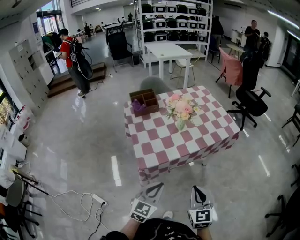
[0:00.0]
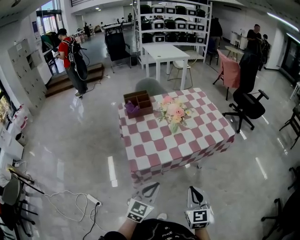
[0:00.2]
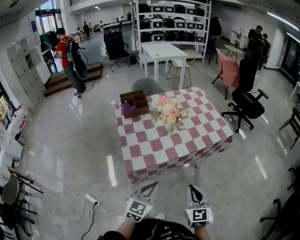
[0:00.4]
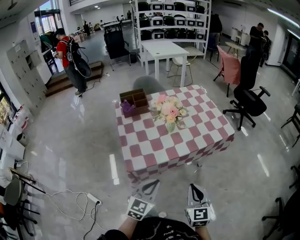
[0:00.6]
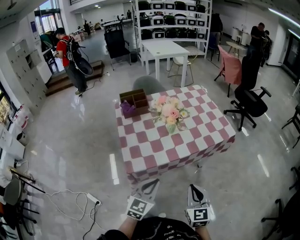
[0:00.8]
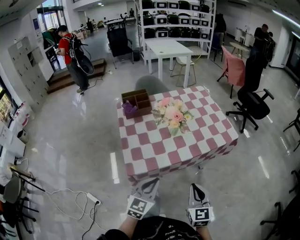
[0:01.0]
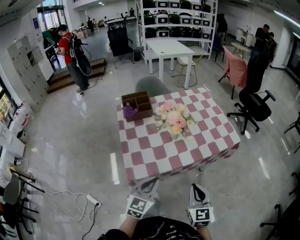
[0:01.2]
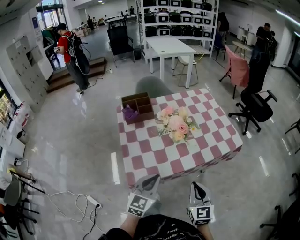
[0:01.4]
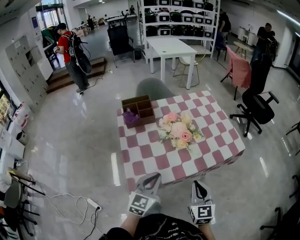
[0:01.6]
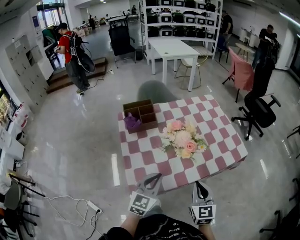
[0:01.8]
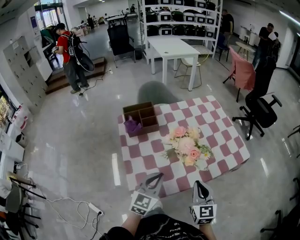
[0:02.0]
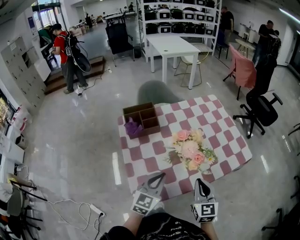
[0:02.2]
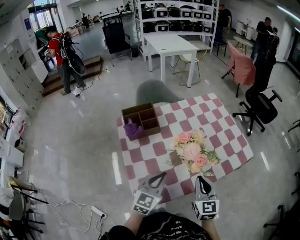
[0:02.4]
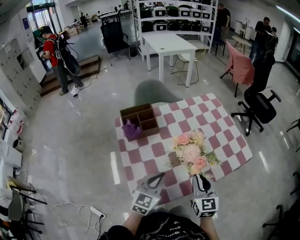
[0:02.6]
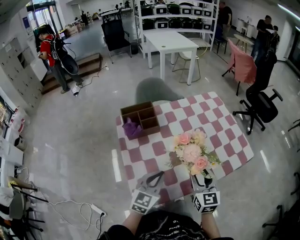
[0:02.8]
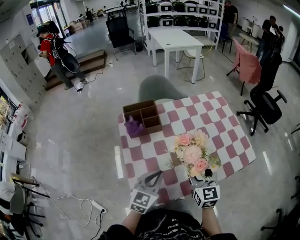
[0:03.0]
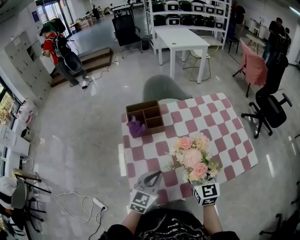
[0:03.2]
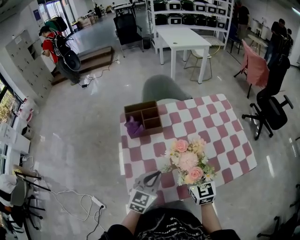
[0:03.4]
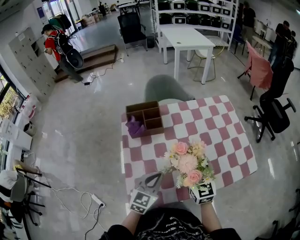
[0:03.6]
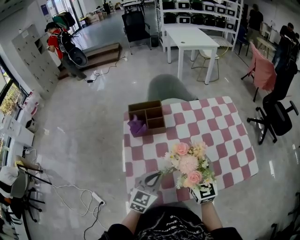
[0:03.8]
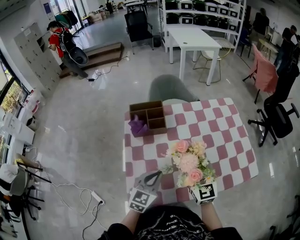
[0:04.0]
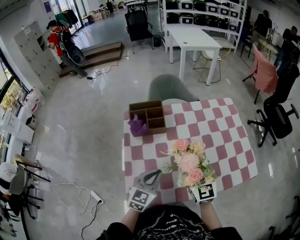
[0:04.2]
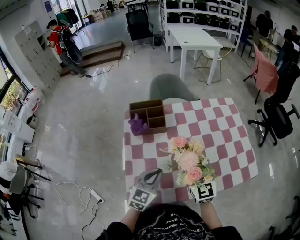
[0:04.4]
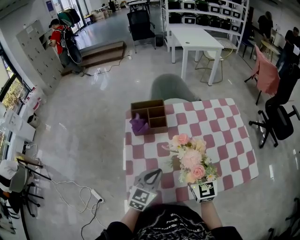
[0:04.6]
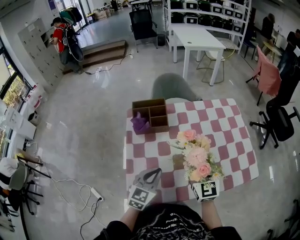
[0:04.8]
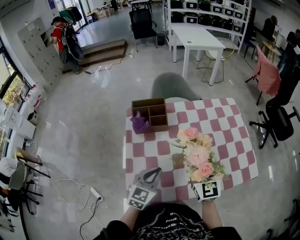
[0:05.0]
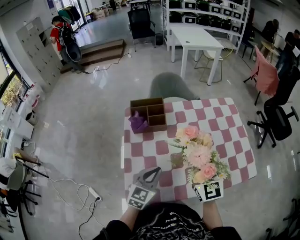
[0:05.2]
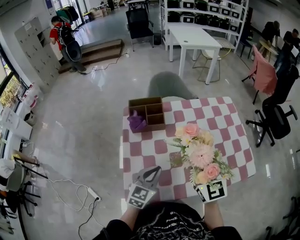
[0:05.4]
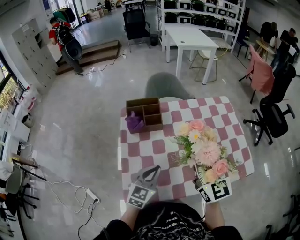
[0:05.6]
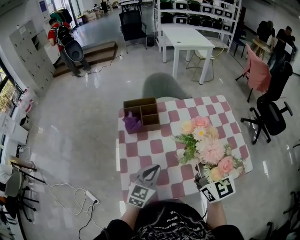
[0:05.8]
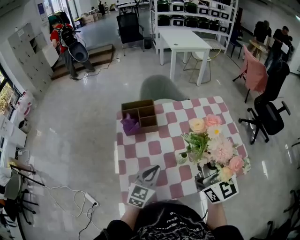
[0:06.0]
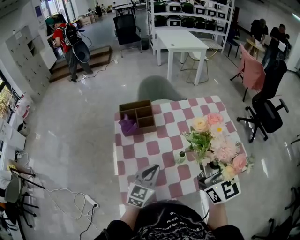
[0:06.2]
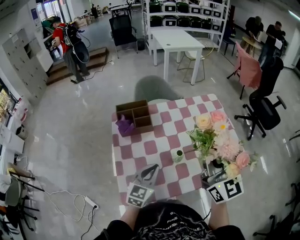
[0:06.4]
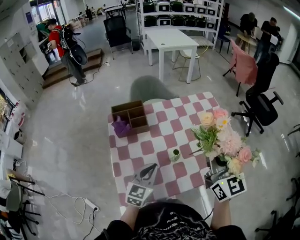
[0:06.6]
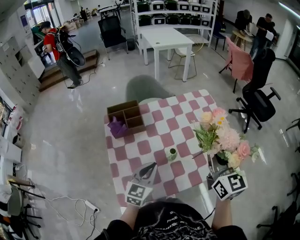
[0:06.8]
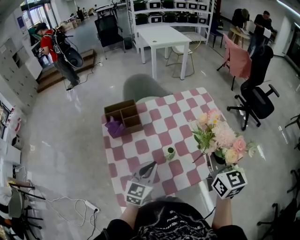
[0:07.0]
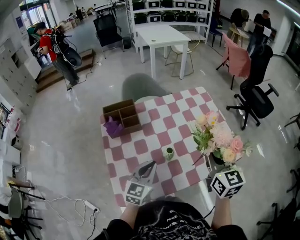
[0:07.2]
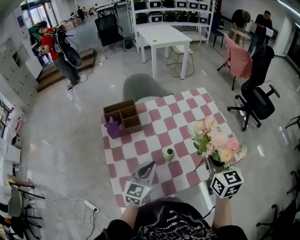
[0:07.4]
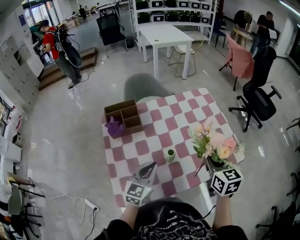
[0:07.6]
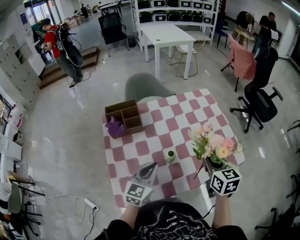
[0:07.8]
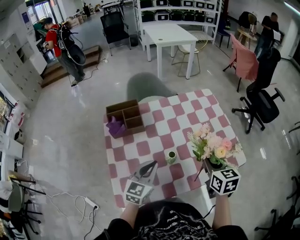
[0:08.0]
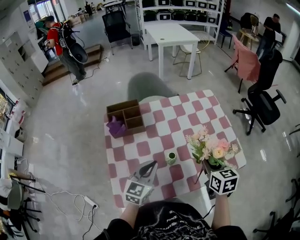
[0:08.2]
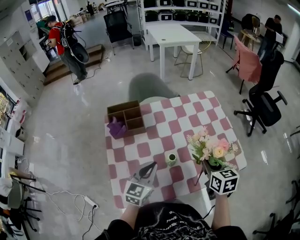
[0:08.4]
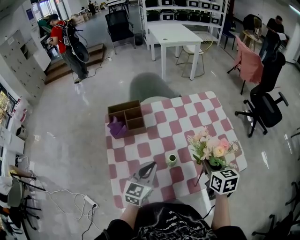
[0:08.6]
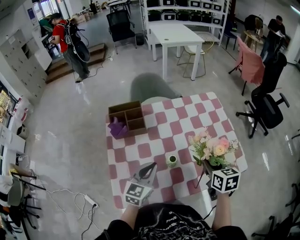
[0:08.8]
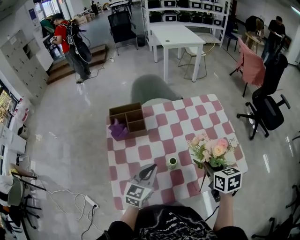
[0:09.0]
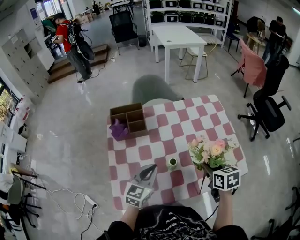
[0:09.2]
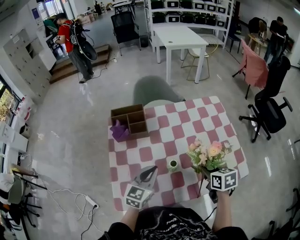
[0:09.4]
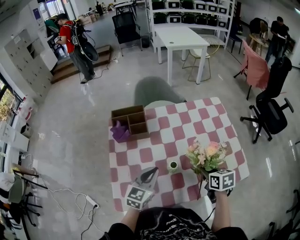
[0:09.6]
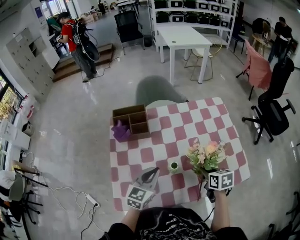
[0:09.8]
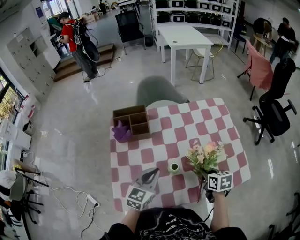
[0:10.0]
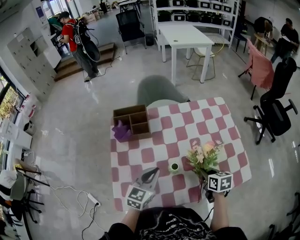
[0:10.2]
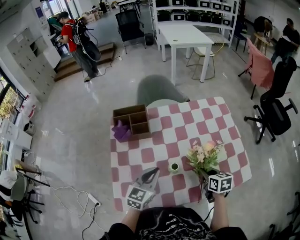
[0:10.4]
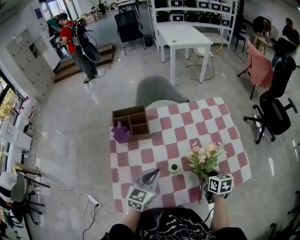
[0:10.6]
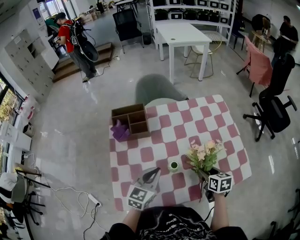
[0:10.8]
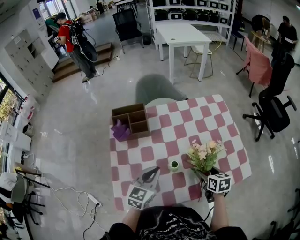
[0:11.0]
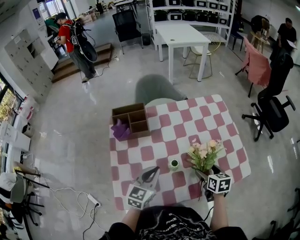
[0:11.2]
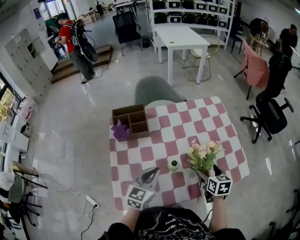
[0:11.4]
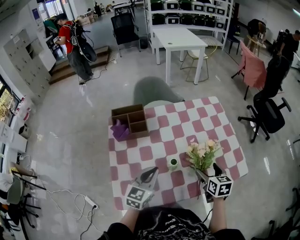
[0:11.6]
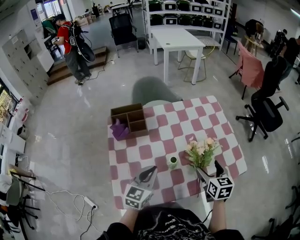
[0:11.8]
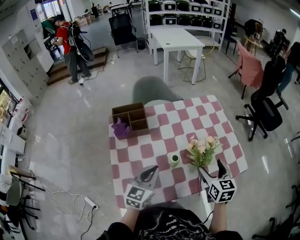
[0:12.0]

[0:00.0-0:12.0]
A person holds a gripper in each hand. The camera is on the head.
0:00.0 to 0:01.6: Both grippers travel together forward, about 20 cm.
0:01.6 to 0:03.0: The right gripper travels forward and to the left by roughly 20 cm, and opens, while the left gripper shifts about 10 cm forward and to the left.
0:03.0 to 0:04.4: The right gripper is displaced forward by approximately 5 cm, turns by about 20 degrees, and closes up.
0:04.4 to 0:06.0: The right gripper moves upward, about 15 cm.
0:06.0 to 0:07.6: The right gripper travels downward and to the right by roughly 20 cm, and points its fingers roughly 40 degrees further downward.
0:07.6 to 0:09.0: The right gripper goes some 5 cm downward, and rotates some 20 degrees.
0:09.0 to 0:10.4: The right gripper moves downward, approximately 10 cm.
0:10.4 to 0:12.0: The right gripper moves upward, roughly 10 cm, changes its angle by about 30 degrees, and opens up.

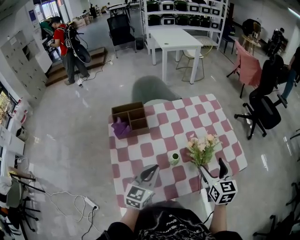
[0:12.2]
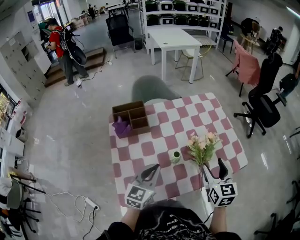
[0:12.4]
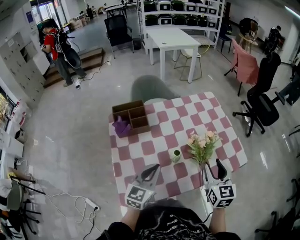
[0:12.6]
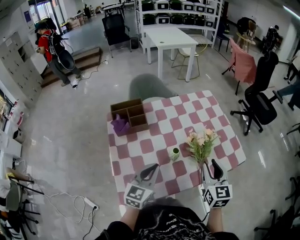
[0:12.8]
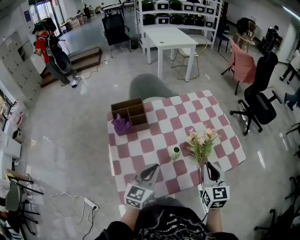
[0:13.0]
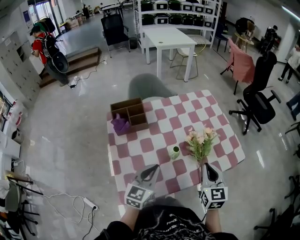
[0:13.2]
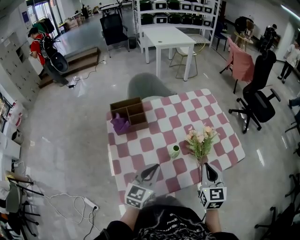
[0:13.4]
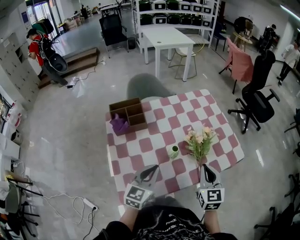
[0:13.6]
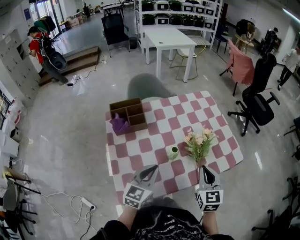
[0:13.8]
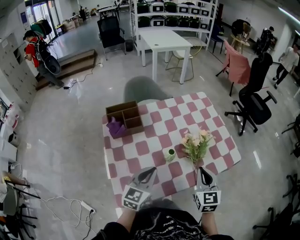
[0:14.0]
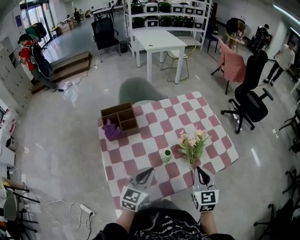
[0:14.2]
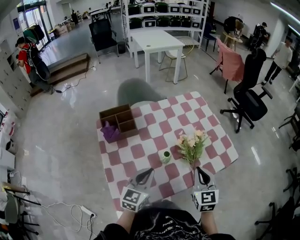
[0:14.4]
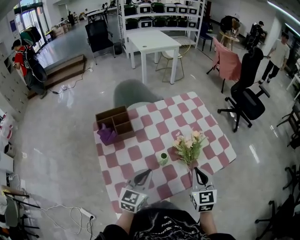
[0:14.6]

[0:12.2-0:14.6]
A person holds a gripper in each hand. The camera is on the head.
0:12.2 to 0:13.4: The right gripper goes some 5 cm backward, and closes.
0:13.4 to 0:14.6: The grippers make only small movements.

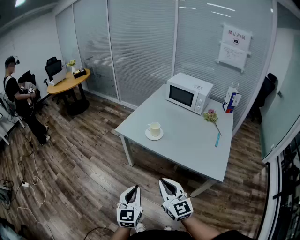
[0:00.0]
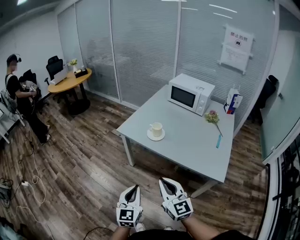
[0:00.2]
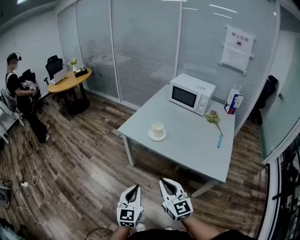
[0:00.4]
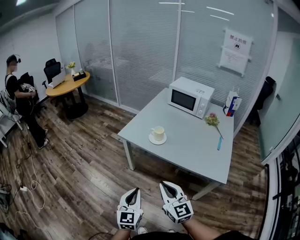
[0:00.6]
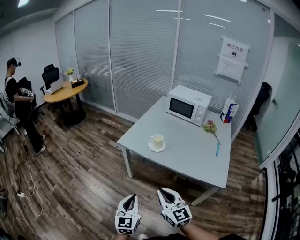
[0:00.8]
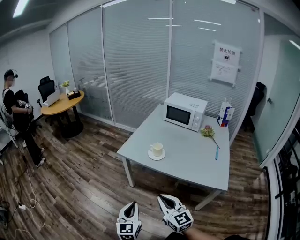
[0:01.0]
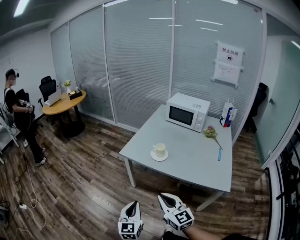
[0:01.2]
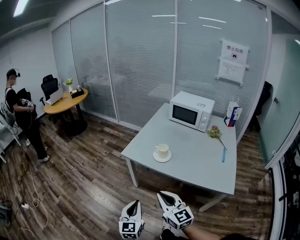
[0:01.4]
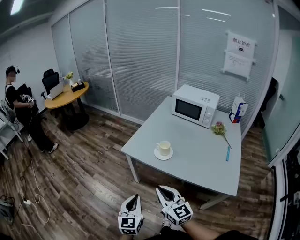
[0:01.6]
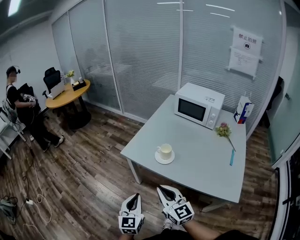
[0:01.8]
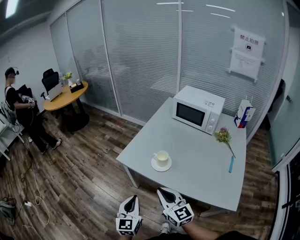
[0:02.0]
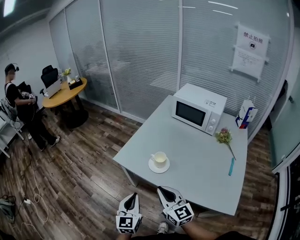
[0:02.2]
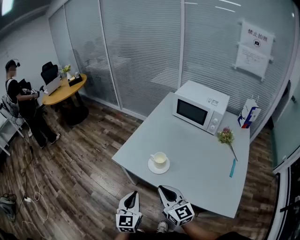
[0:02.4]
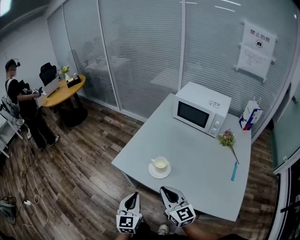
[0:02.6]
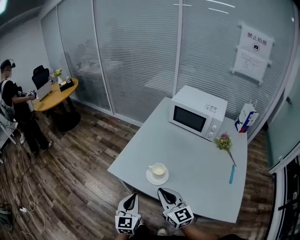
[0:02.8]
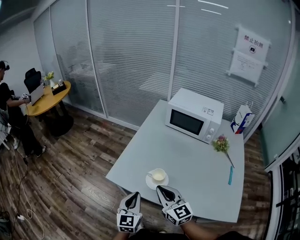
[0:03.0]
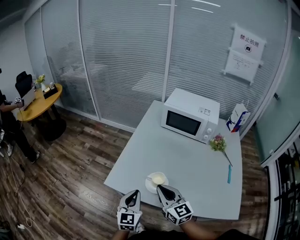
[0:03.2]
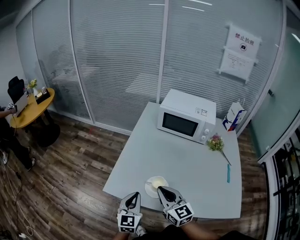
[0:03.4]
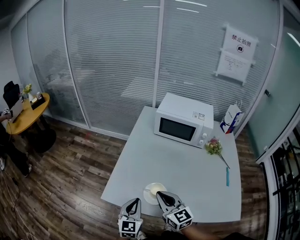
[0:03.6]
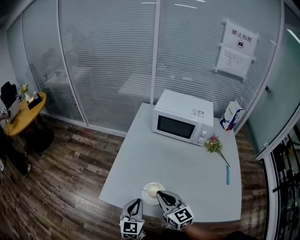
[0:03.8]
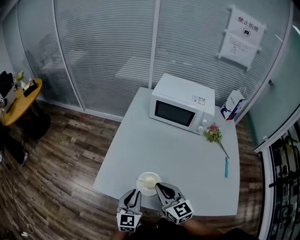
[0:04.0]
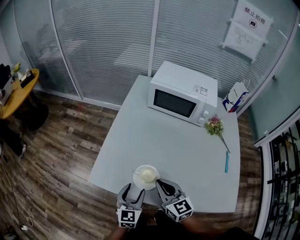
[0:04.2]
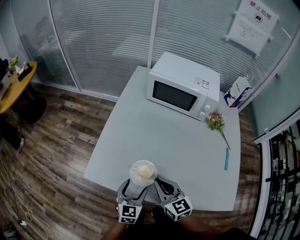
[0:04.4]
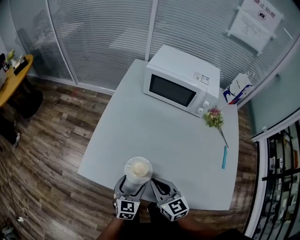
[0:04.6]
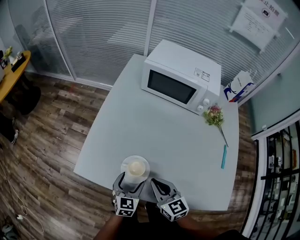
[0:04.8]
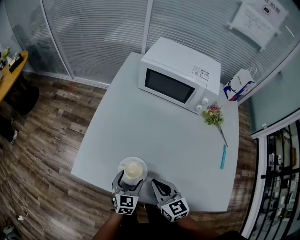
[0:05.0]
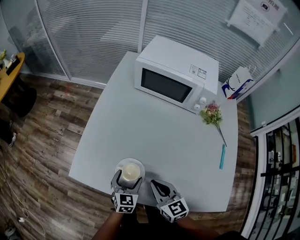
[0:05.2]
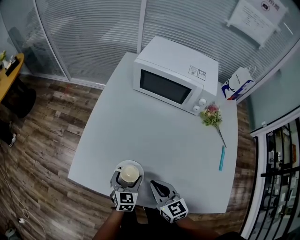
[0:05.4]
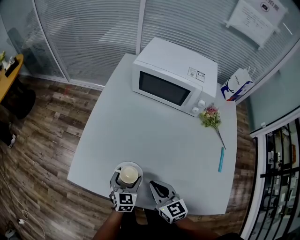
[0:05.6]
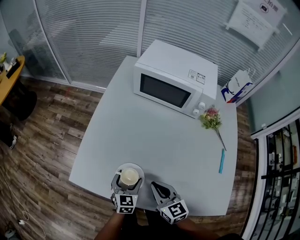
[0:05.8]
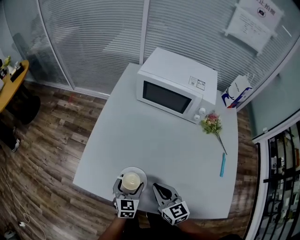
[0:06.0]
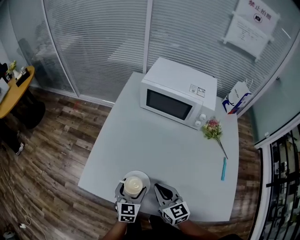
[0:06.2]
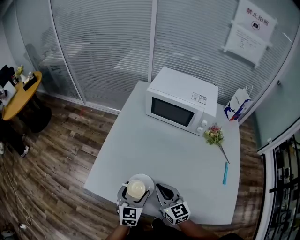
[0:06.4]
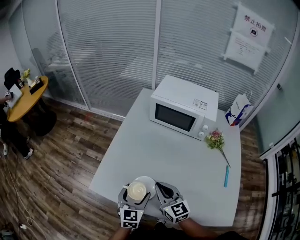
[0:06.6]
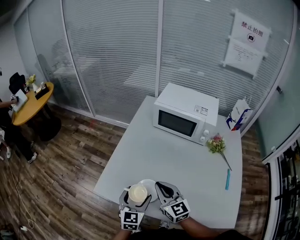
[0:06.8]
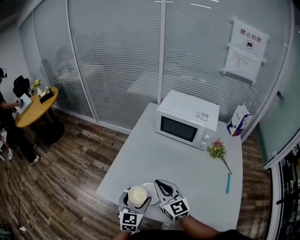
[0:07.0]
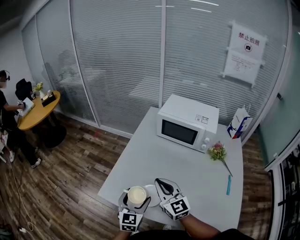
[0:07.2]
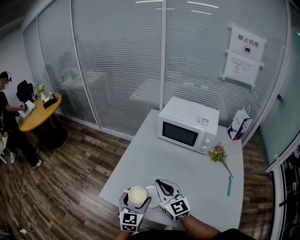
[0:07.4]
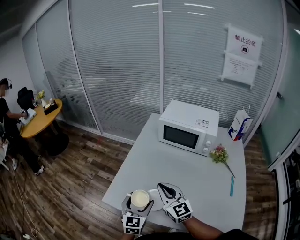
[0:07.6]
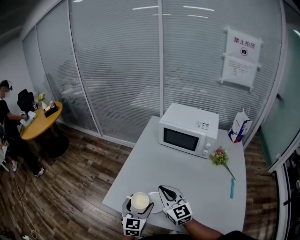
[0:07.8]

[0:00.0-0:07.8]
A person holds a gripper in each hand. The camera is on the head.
0:00.0 to 0:01.6: Both grippers move forward and to the left, about 15 cm.
0:01.6 to 0:03.2: The grippers both shift forward by roughly 30 cm.
0:03.2 to 0:04.6: The two grippers go roughly 15 cm downward and to the right. The left gripper rotates roughly 20 degrees, and opens up.
0:04.6 to 0:06.2: The left gripper goes approximately 5 cm forward. Meanwhile the right gripper changes place by some 5 cm.
0:06.2 to 0:07.8: The grippers both shift upward and to the left by about 15 cm. The right gripper changes its angle by roughly 20 degrees.

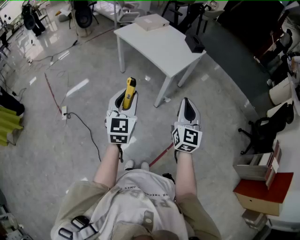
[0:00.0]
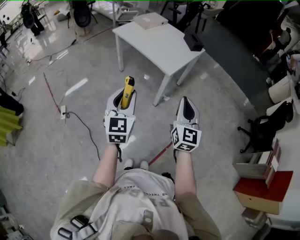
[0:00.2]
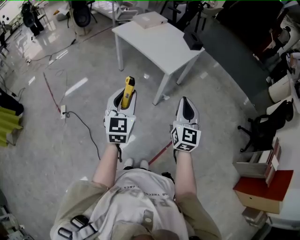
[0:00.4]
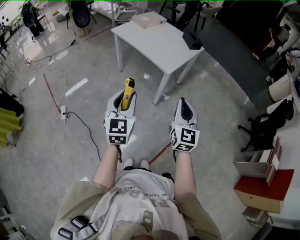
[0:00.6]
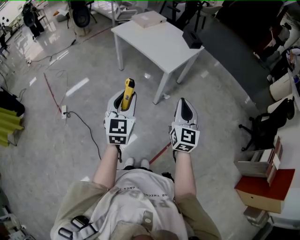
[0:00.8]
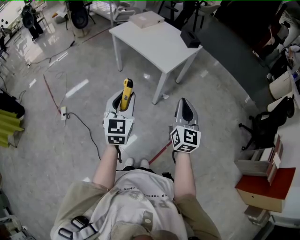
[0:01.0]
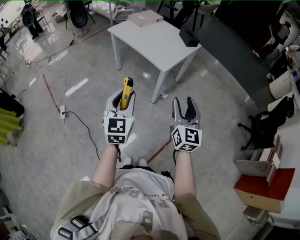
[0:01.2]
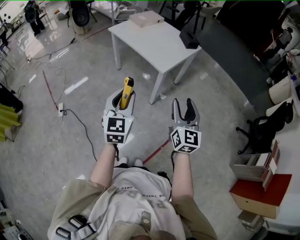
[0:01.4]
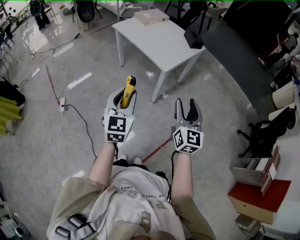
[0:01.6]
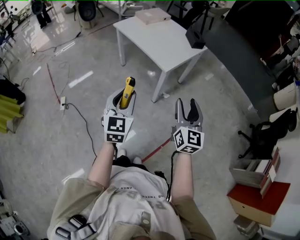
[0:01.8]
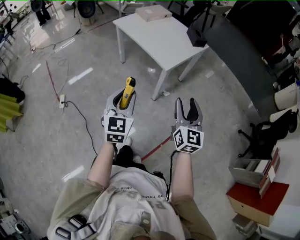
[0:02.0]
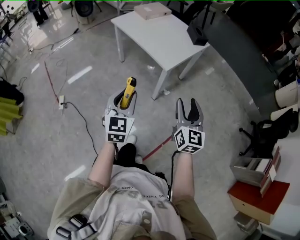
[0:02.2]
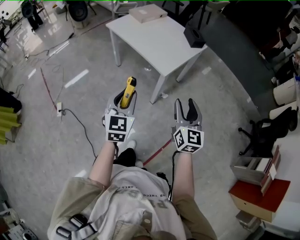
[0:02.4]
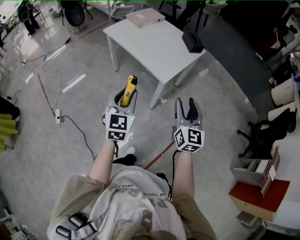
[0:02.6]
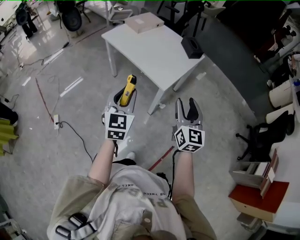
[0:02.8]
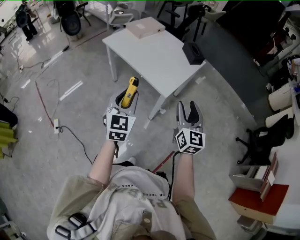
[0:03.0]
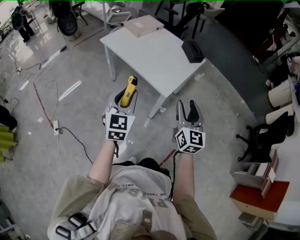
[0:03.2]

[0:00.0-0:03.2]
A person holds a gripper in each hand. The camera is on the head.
0:00.0 to 0:01.6: Both grippers move to the right, roughly 10 cm. The right gripper opens.
0:01.6 to 0:03.2: Both grippers move forward, some 25 cm.
